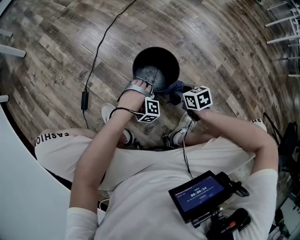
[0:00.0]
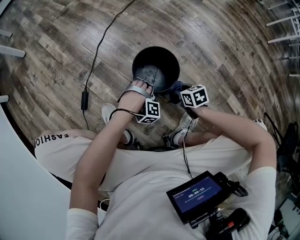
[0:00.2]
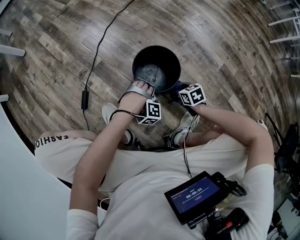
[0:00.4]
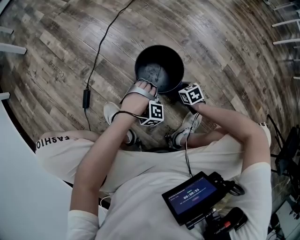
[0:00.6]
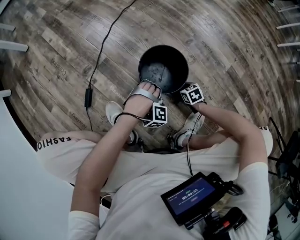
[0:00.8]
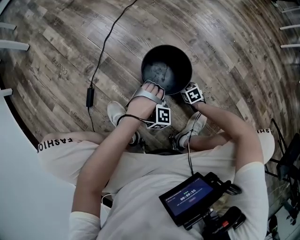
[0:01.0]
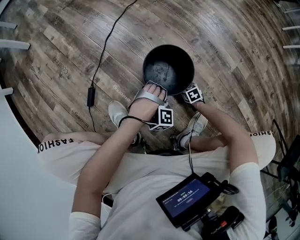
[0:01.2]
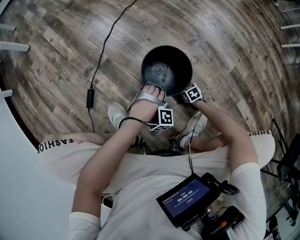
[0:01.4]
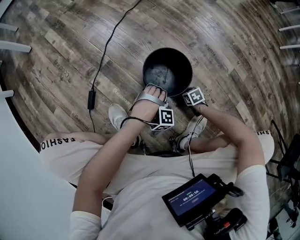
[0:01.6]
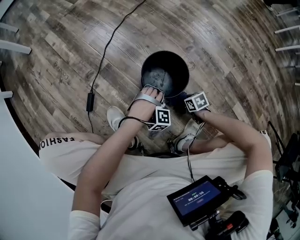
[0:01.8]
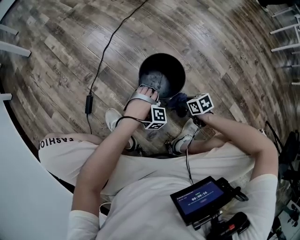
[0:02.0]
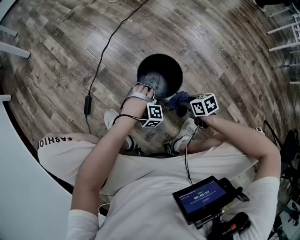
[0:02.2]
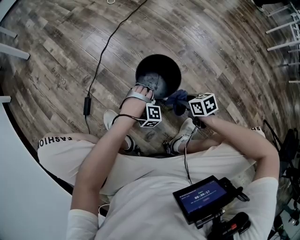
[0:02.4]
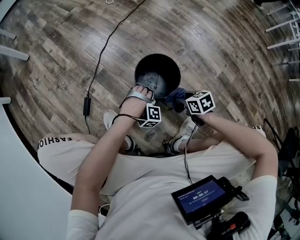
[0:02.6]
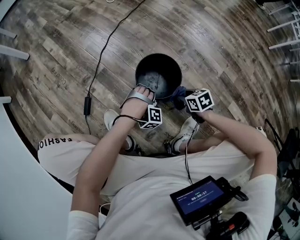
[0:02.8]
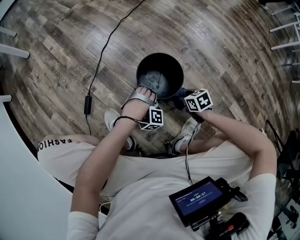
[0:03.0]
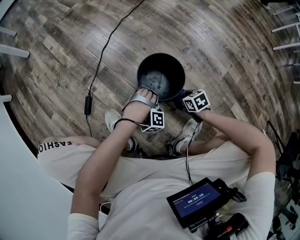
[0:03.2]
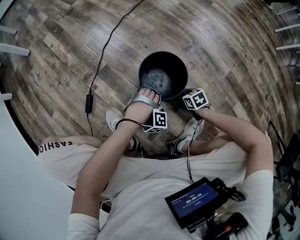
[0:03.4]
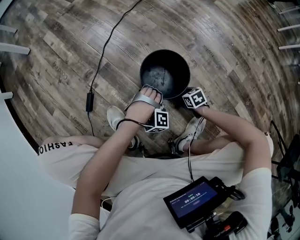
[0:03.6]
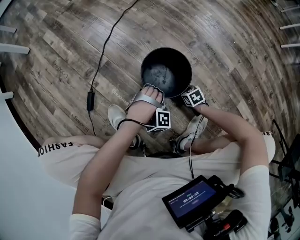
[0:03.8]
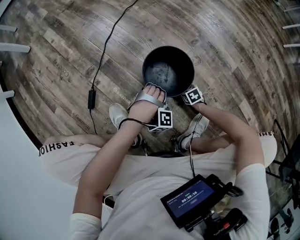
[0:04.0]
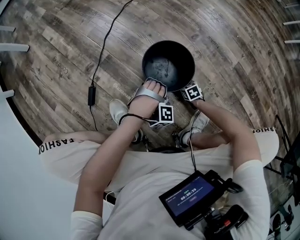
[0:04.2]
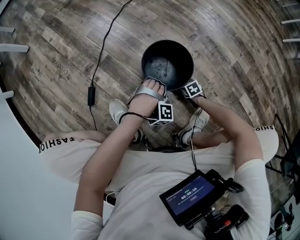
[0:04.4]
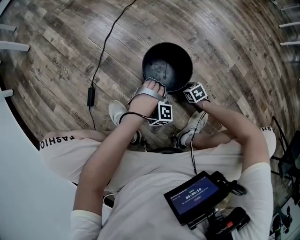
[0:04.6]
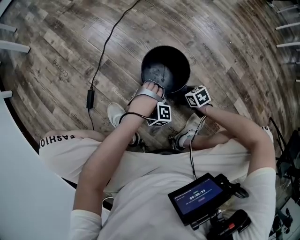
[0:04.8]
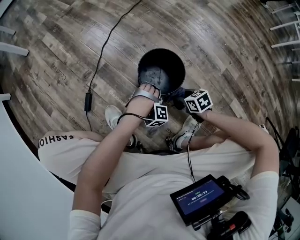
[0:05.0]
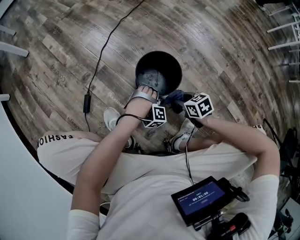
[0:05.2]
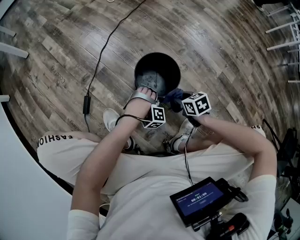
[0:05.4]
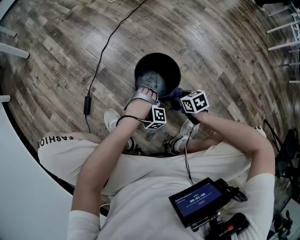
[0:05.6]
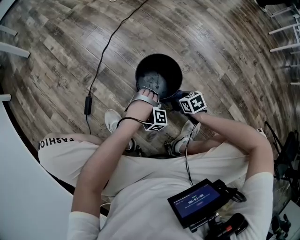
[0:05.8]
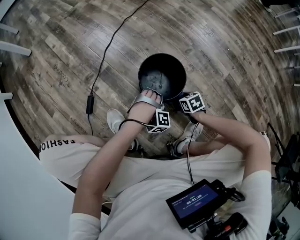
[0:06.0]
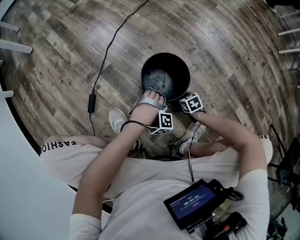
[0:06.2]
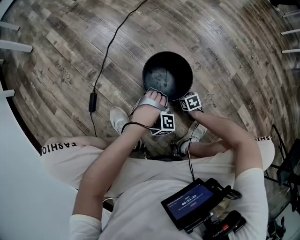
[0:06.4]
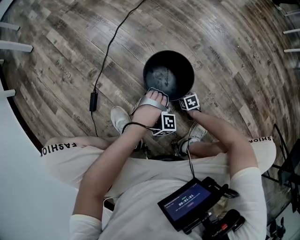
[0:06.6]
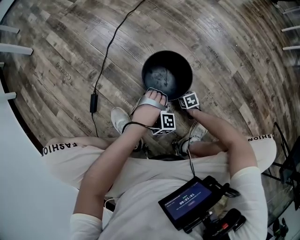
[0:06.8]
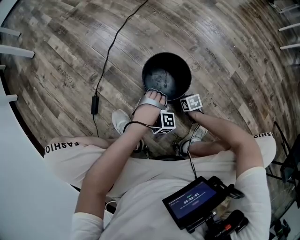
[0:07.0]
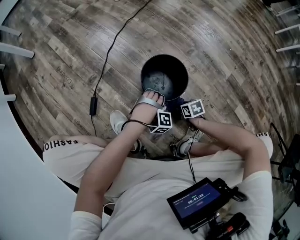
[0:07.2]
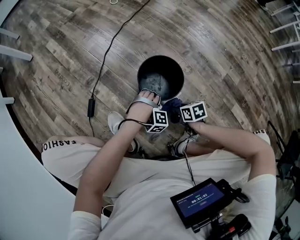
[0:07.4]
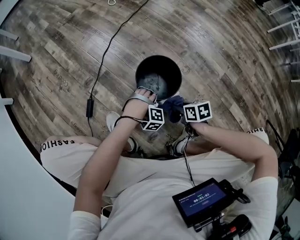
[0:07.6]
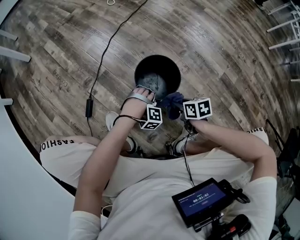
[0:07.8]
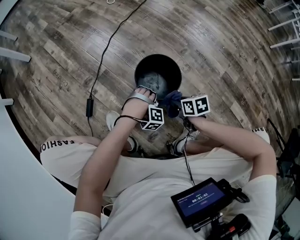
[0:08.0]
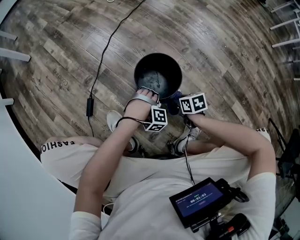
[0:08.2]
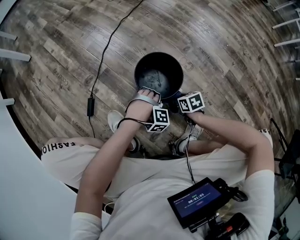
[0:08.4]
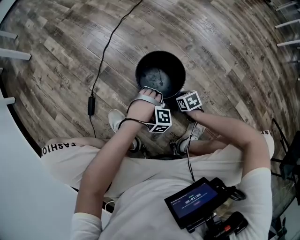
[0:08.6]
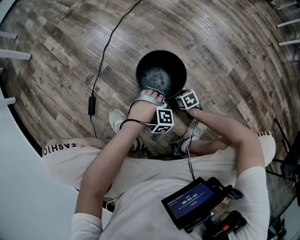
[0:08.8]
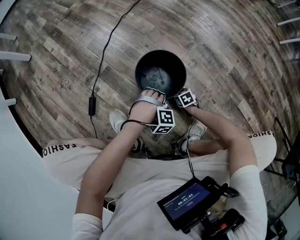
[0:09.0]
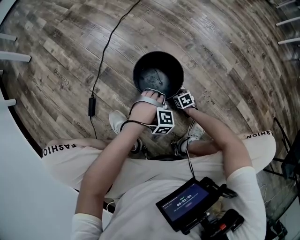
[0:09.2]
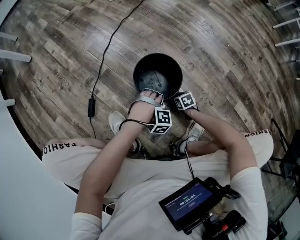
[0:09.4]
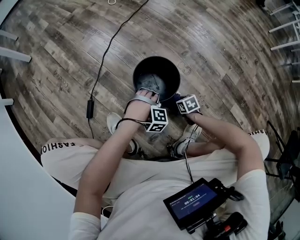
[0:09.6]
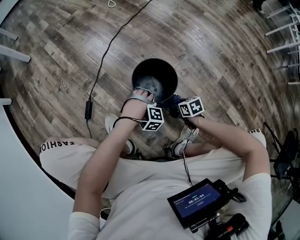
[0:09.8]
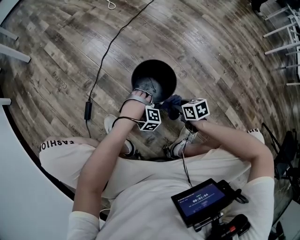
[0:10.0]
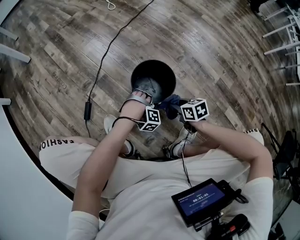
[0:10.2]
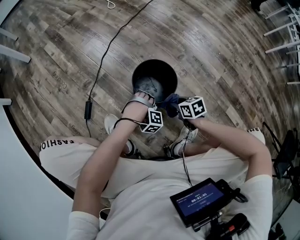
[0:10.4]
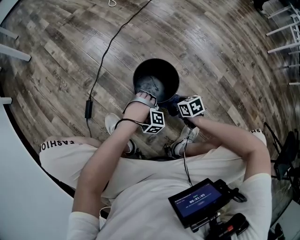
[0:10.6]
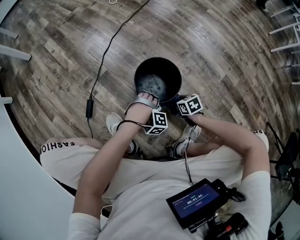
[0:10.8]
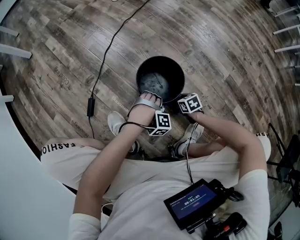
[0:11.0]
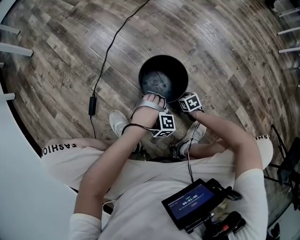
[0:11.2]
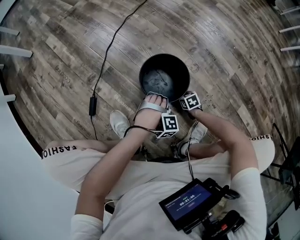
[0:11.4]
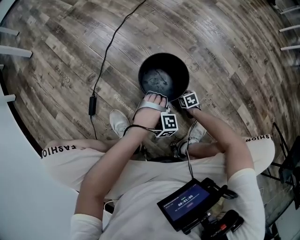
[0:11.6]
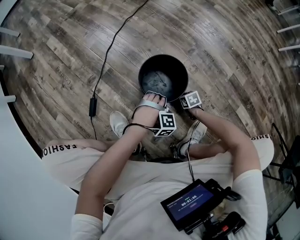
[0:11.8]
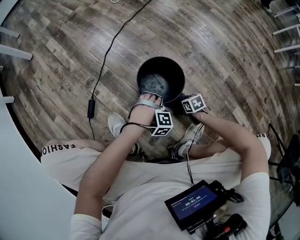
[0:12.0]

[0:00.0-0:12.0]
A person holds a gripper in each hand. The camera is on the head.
0:00.0 to 0:01.6: The right gripper shifts about 20 cm downward.
0:01.6 to 0:03.0: The right gripper goes approximately 15 cm upward.
0:03.0 to 0:04.4: The right gripper moves downward, roughly 20 cm.
0:04.4 to 0:06.0: The right gripper heads upward, covering approximately 10 cm.
0:06.0 to 0:07.6: The right gripper is displaced upward by approximately 10 cm.
0:07.6 to 0:09.0: The right gripper is displaced downward by some 20 cm, and turns by approximately 20 degrees.
0:09.0 to 0:10.4: The right gripper heads upward, covering approximately 20 cm.
0:10.4 to 0:12.0: The right gripper goes about 10 cm downward.

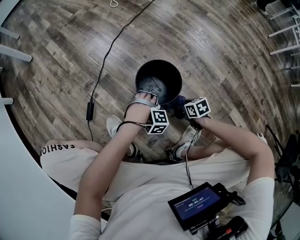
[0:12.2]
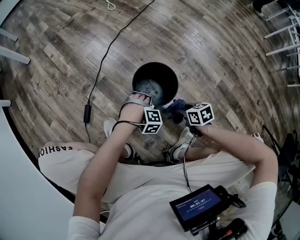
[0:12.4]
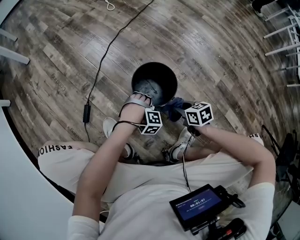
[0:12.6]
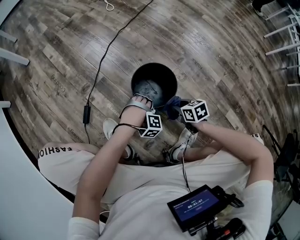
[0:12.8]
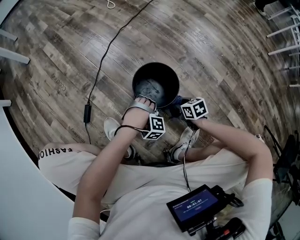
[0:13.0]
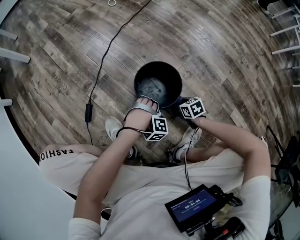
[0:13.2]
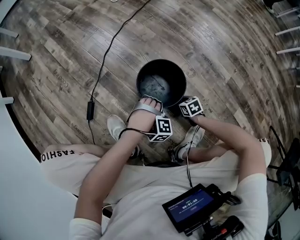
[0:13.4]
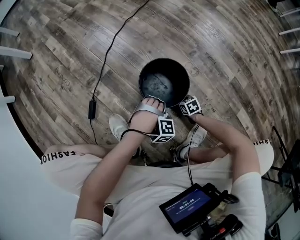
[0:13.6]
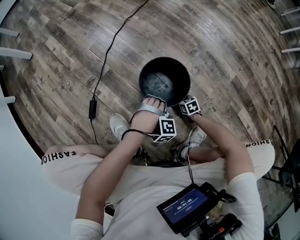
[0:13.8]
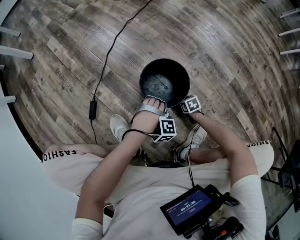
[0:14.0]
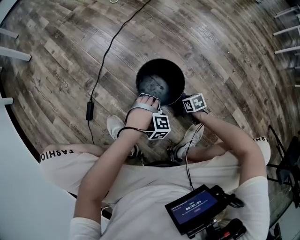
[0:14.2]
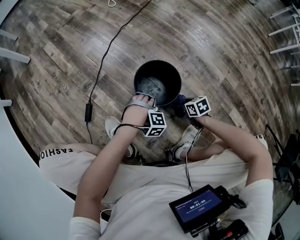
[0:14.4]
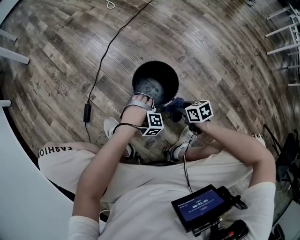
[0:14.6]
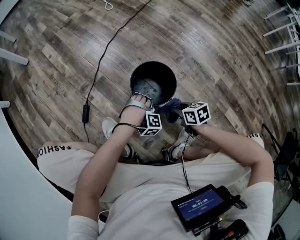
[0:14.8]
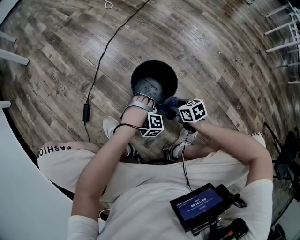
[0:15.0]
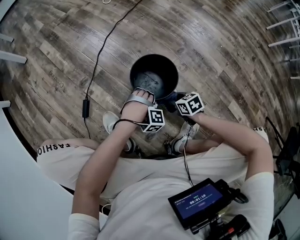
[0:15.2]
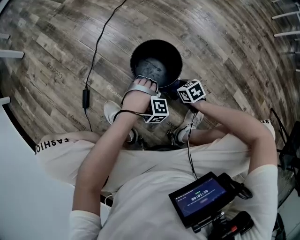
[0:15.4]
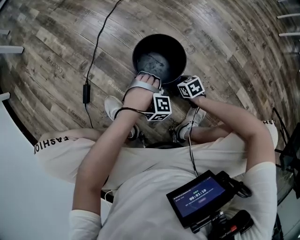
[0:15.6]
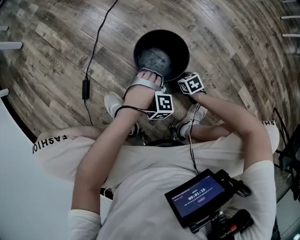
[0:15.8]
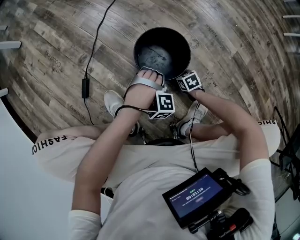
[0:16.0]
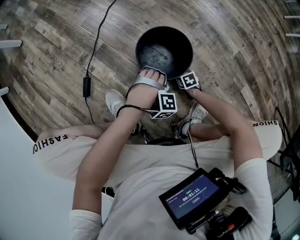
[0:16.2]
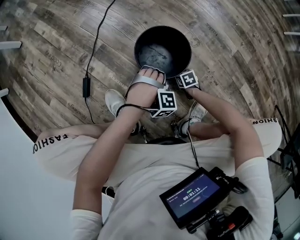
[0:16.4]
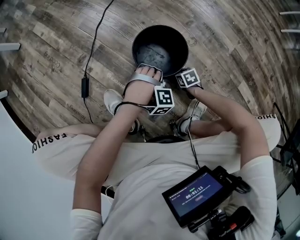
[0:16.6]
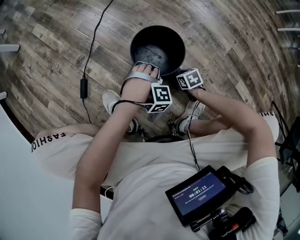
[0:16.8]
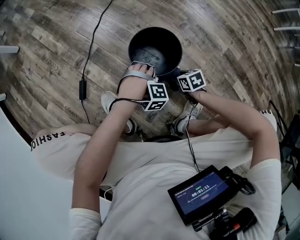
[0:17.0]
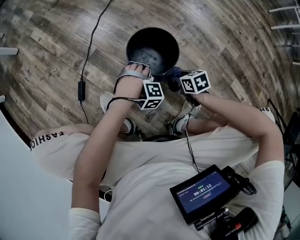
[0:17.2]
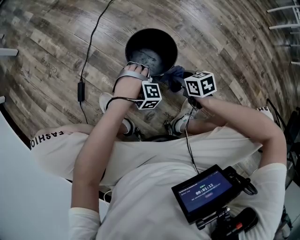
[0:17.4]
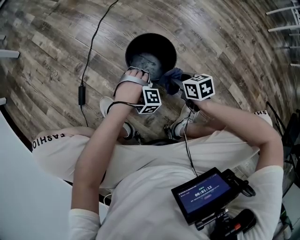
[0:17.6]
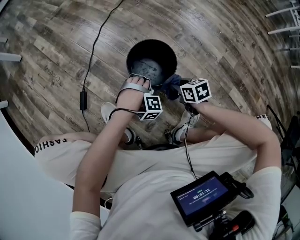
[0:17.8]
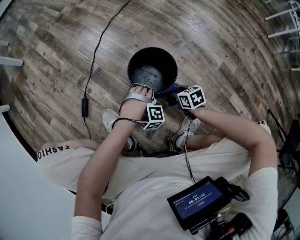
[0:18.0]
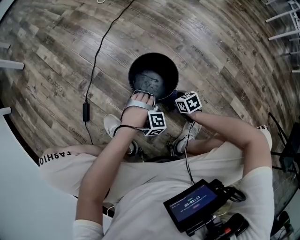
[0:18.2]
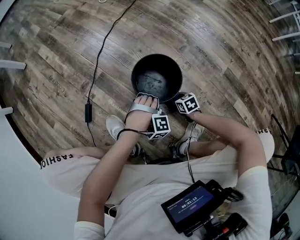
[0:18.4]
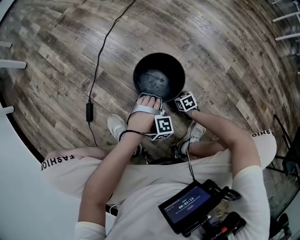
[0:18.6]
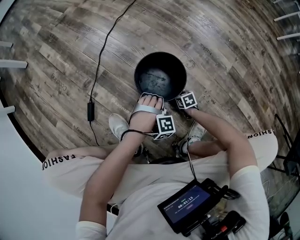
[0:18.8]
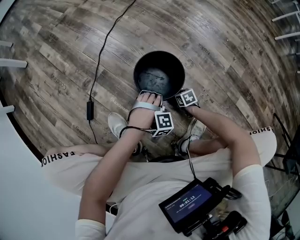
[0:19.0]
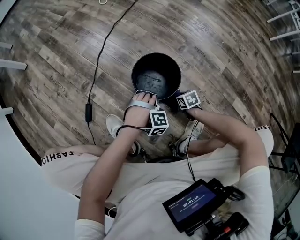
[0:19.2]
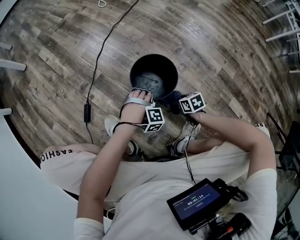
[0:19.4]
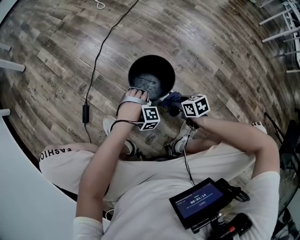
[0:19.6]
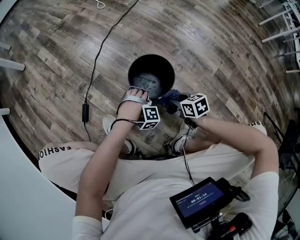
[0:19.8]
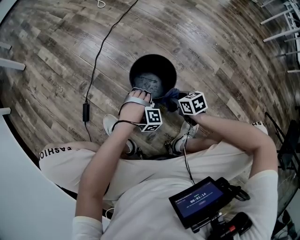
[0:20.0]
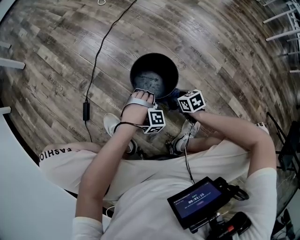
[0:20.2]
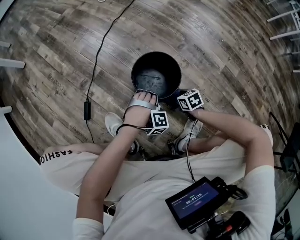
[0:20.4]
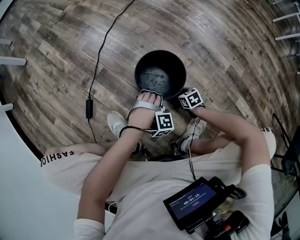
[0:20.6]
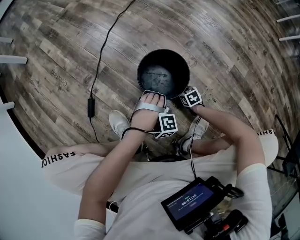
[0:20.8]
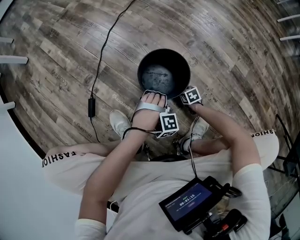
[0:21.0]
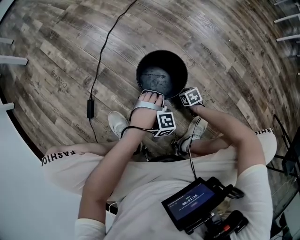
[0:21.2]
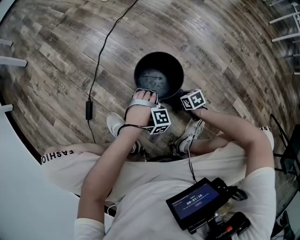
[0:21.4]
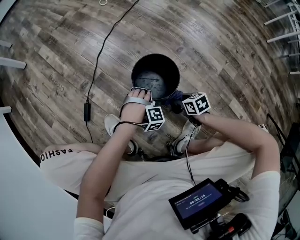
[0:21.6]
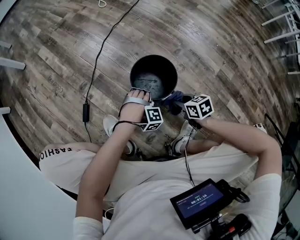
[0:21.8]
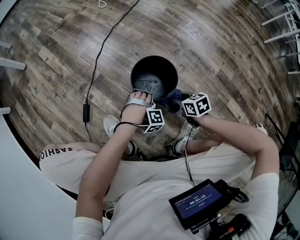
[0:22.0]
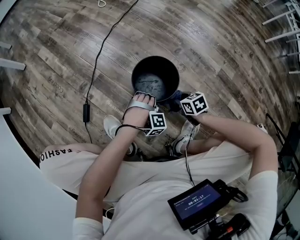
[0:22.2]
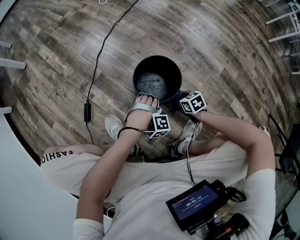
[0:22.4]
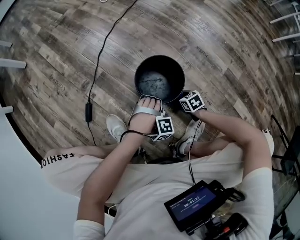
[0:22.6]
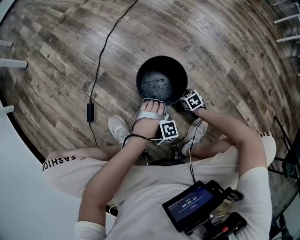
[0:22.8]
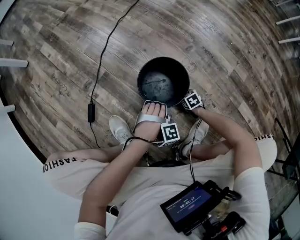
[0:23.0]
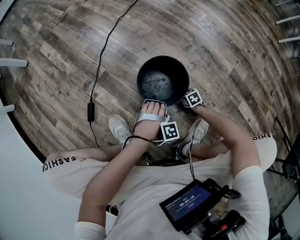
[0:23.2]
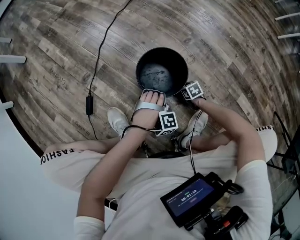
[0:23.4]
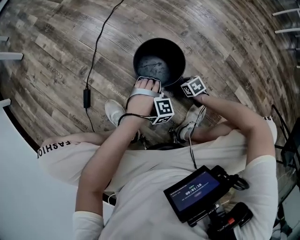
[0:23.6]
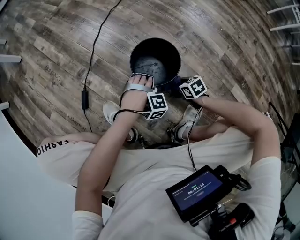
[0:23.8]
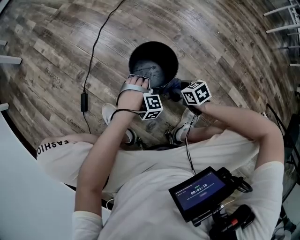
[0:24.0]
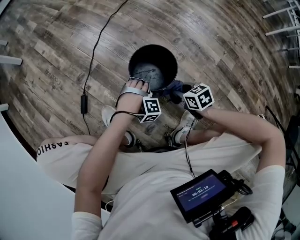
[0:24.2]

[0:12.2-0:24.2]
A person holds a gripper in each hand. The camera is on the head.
0:12.2 to 0:13.8: The right gripper is displaced downward by roughly 15 cm.
0:13.8 to 0:15.2: The right gripper goes some 15 cm upward.
0:15.2 to 0:16.6: The right gripper shifts approximately 15 cm downward.
0:16.6 to 0:18.2: The right gripper goes roughly 10 cm upward.
0:18.2 to 0:19.8: The right gripper travels upward by about 10 cm.
0:19.8 to 0:21.2: The right gripper is displaced downward by some 20 cm.
0:21.2 to 0:22.6: The right gripper travels upward and back again, about 20 cm each way.
0:22.6 to 0:24.2: The right gripper shifts approximately 15 cm upward.
